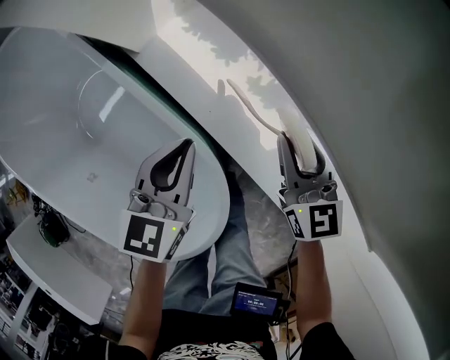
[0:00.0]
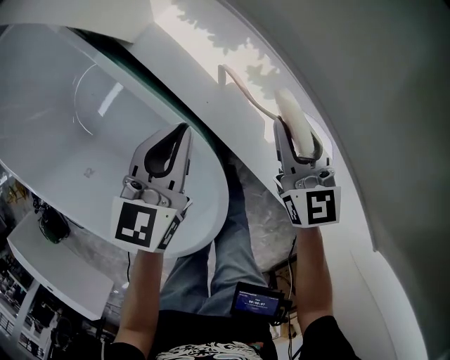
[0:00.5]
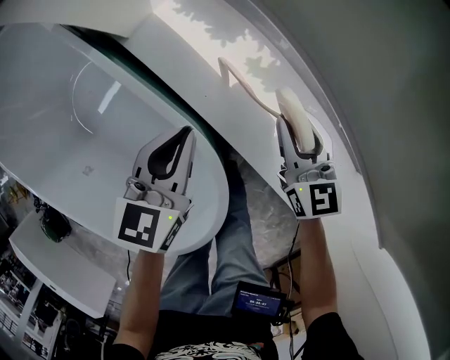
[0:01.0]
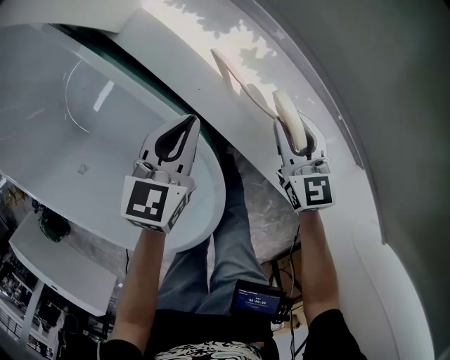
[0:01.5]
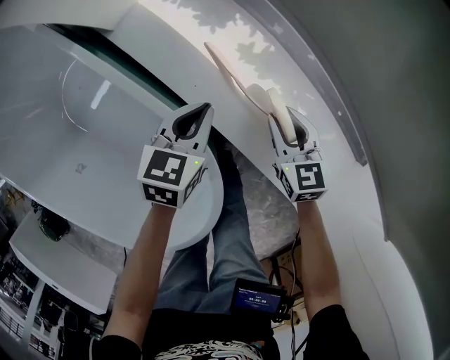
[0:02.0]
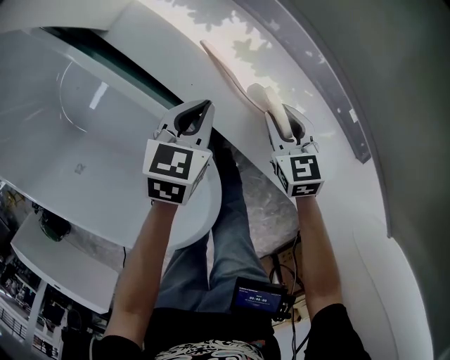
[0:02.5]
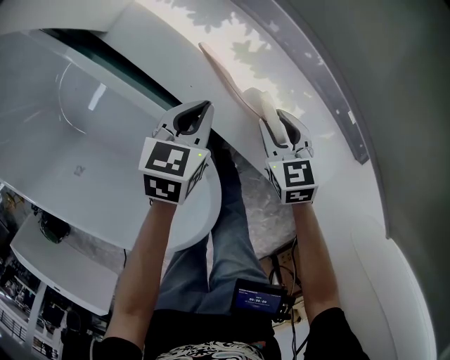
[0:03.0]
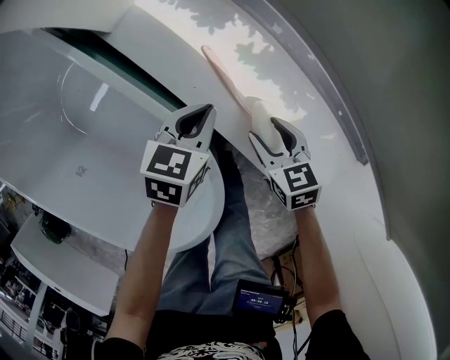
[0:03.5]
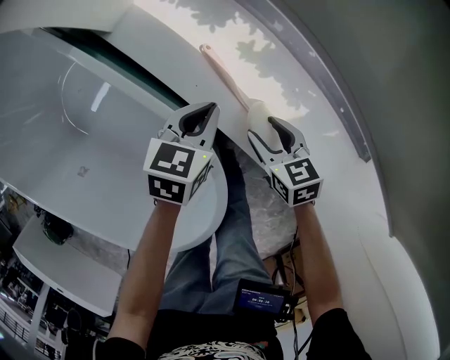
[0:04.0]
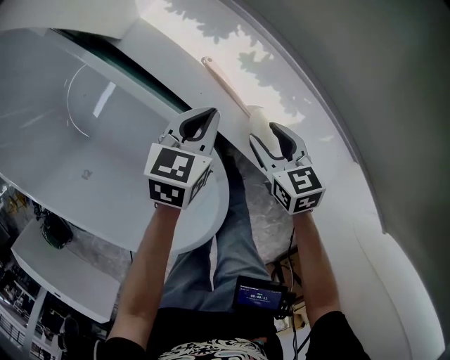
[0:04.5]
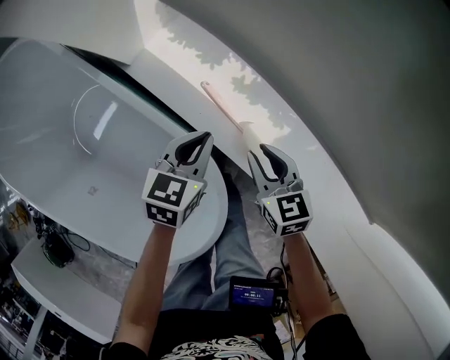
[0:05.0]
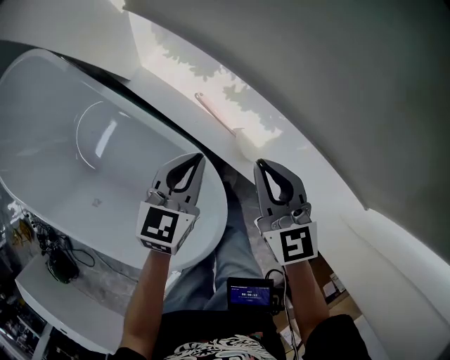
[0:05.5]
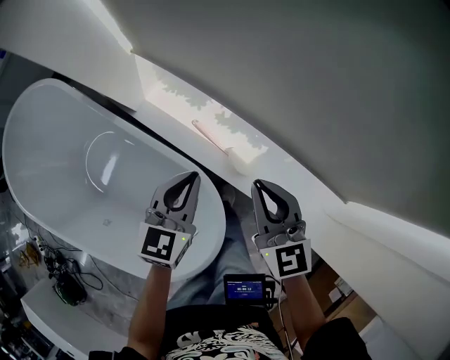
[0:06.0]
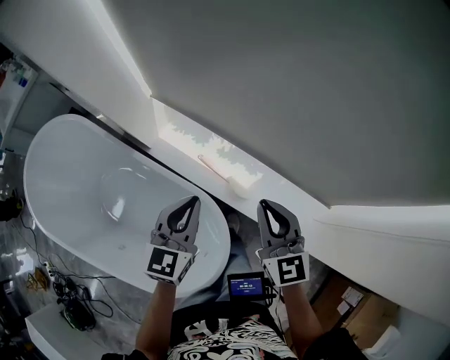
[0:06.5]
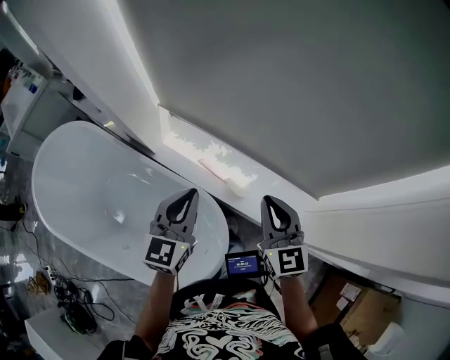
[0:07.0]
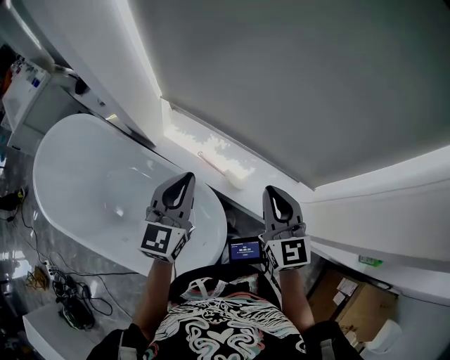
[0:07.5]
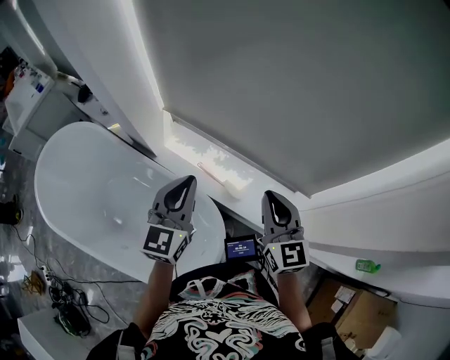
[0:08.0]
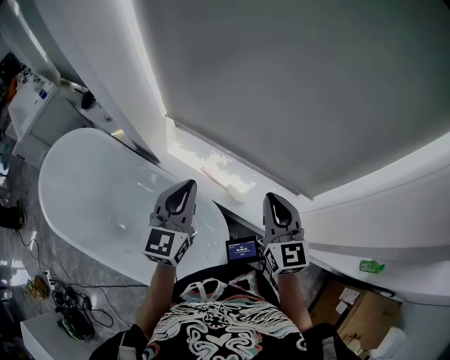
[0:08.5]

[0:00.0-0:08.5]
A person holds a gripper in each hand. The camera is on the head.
0:00.0 to 0:02.0: The two grippers go roughly 15 cm downward.
0:02.0 to 0:04.0: The right gripper changes place by some 5 cm.
0:04.0 to 0:06.5: Both grippers move upward, roughly 40 cm. The left gripper rotates about 30 degrees. The right gripper tilts its fingers approximately 30 degrees upward, and closes up.
0:06.5 to 0:08.5: The right gripper heads upward and backward, covering roughly 15 cm; the left gripper is displaced upward by roughly 15 cm.

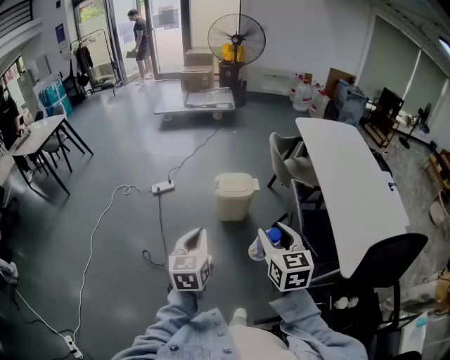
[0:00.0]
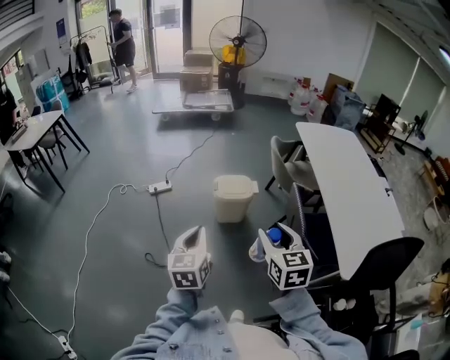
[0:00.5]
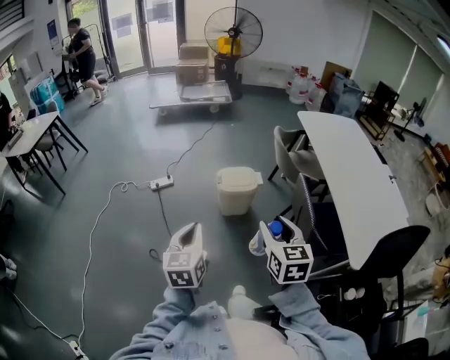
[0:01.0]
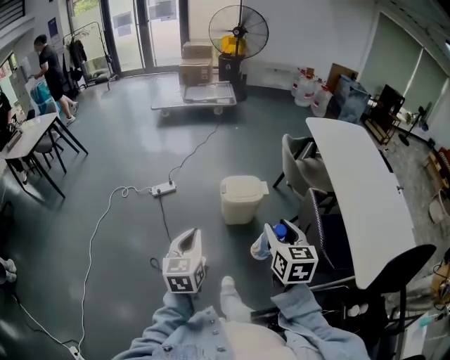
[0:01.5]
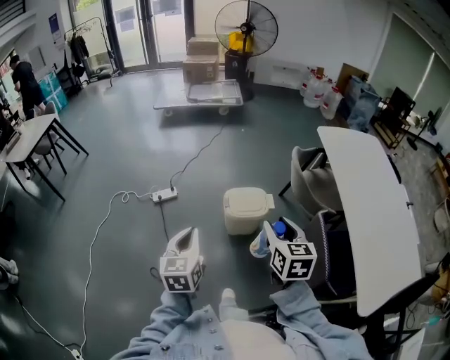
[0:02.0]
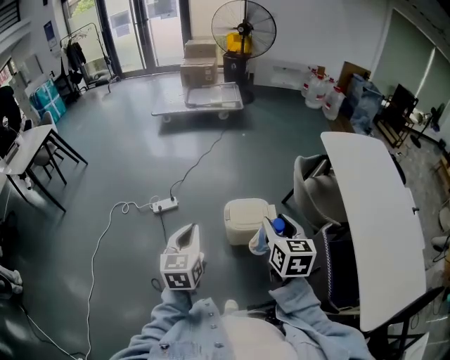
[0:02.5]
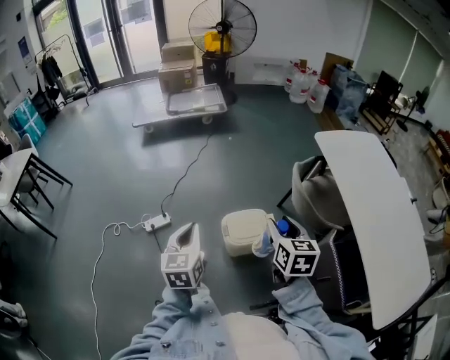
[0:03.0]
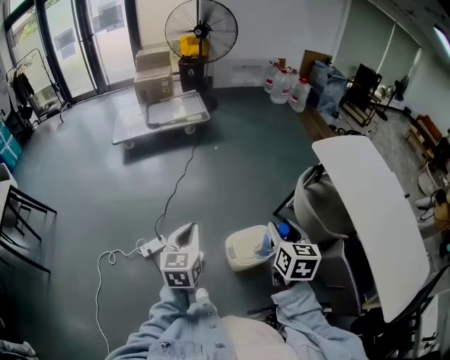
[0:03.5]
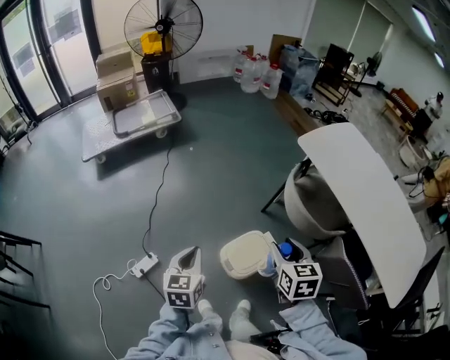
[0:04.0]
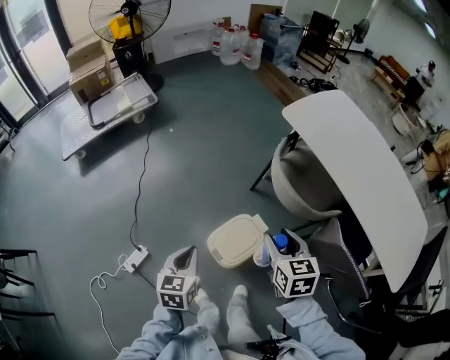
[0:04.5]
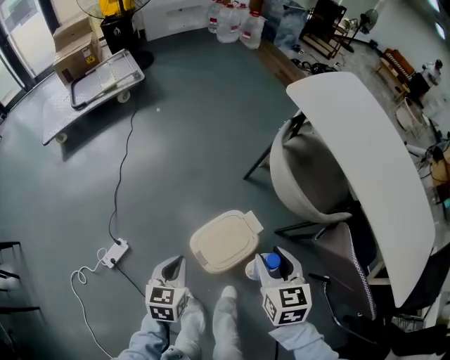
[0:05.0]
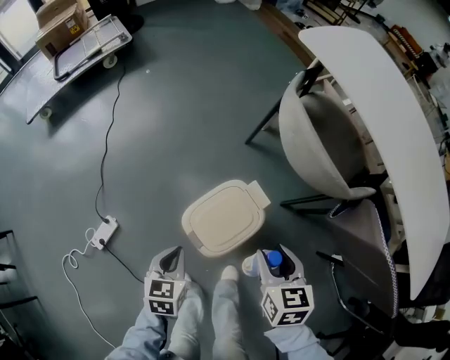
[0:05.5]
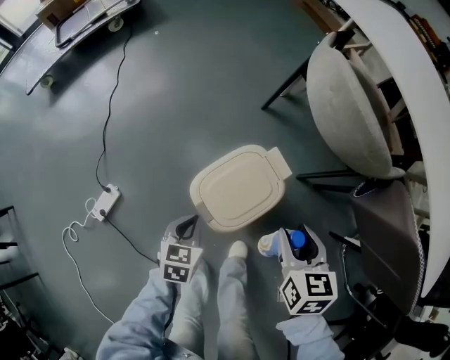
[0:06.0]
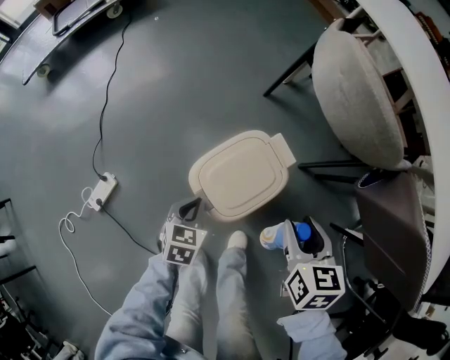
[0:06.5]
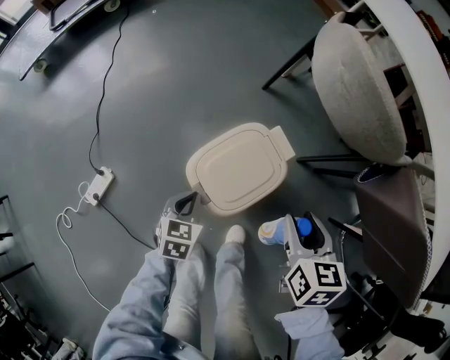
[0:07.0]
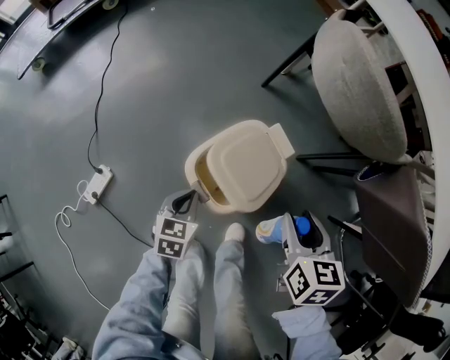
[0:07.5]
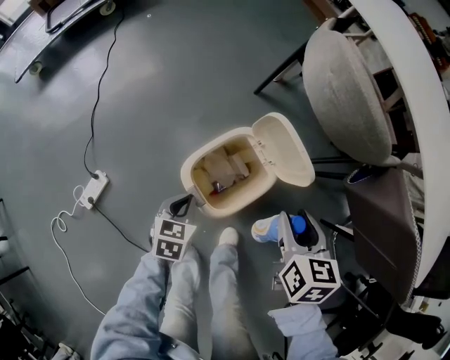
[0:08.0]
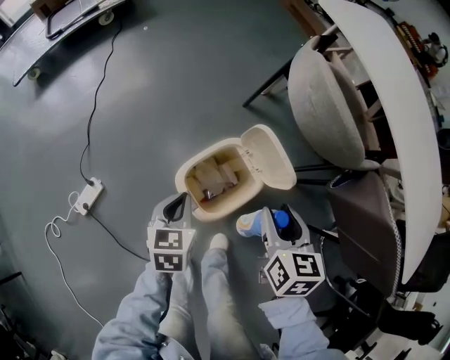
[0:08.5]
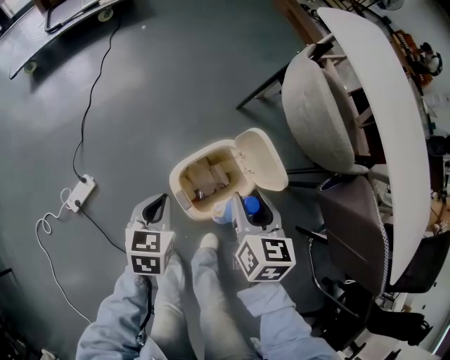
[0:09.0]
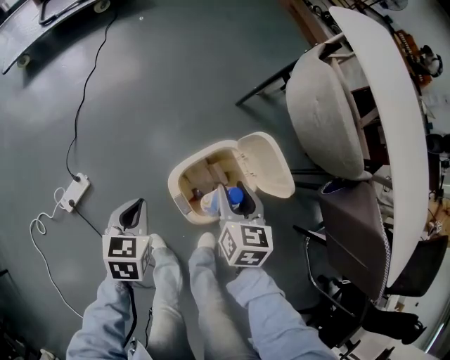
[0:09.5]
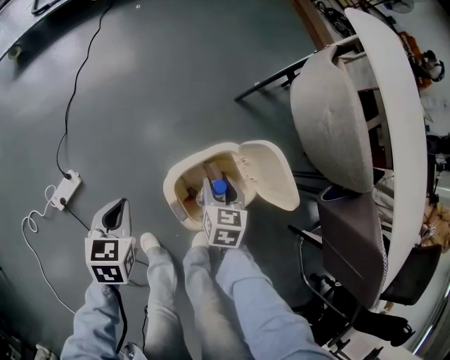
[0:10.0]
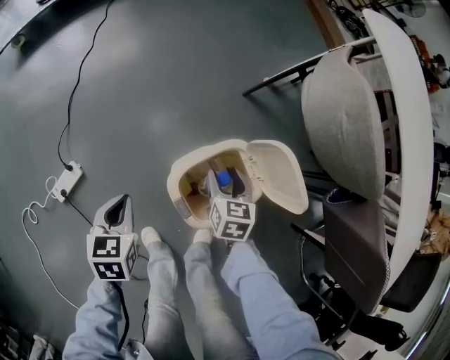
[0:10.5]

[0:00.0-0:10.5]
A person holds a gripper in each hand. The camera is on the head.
0:00.0 to 0:02.0: The right gripper heads forward, covering about 25 cm; the left gripper shifts about 25 cm forward and to the left.
0:02.0 to 0:04.0: The left gripper moves approximately 50 cm, and rotates some 30 degrees, while the right gripper shifts by approximately 35 cm, and rotates some 30 degrees.
0:04.0 to 0:06.5: Both grippers travel together downward, roughly 40 cm. The left gripper rotates approximately 30 degrees.
0:06.5 to 0:08.5: The left gripper shifts about 10 cm upward. Meanwhile the right gripper goes some 5 cm upward.
0:08.5 to 0:10.5: The right gripper heads downward, to the left and forward, covering about 25 cm. Meanwhile the left gripper heads to the left, covering some 15 cm.

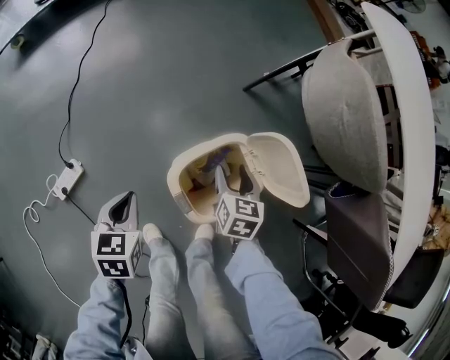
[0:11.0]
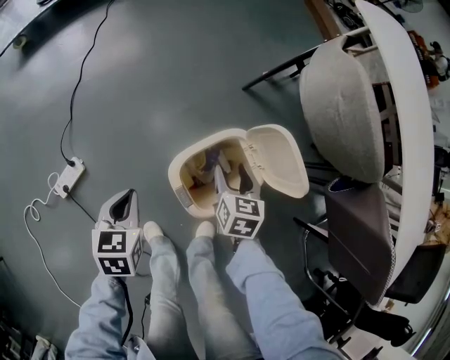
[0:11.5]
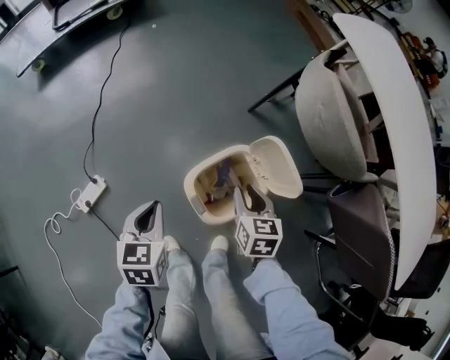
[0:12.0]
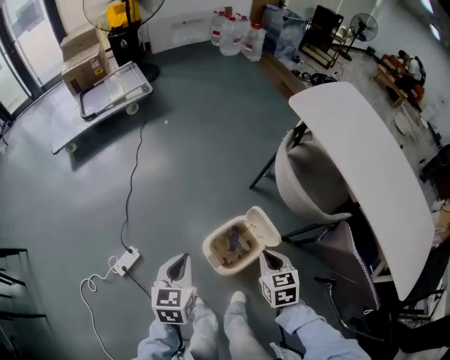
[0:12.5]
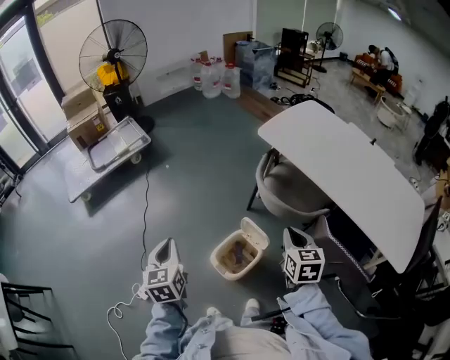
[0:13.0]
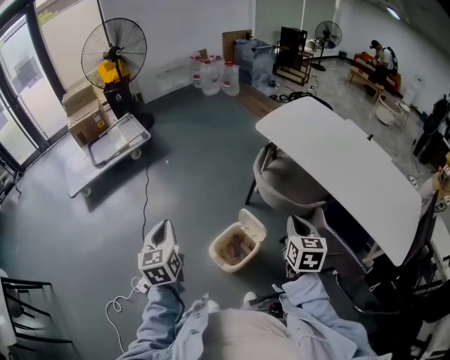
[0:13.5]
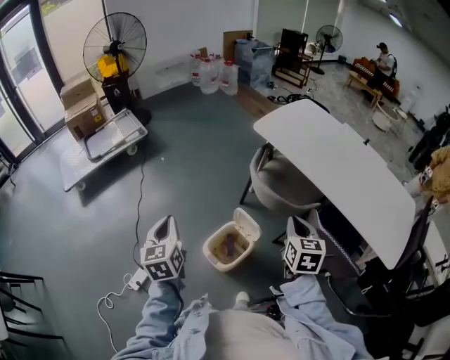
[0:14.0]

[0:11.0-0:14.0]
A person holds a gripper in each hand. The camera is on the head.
0:11.0 to 0:12.5: The grippers both shift upward by some 30 cm. The right gripper closes its fingers.
0:12.5 to 0:14.0: The left gripper travels upward by some 20 cm, while the right gripper shifts roughly 30 cm upward and to the right, and turns by some 30 degrees.

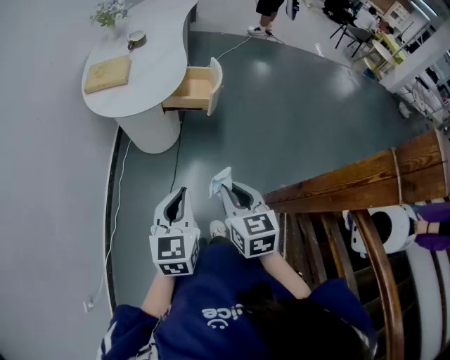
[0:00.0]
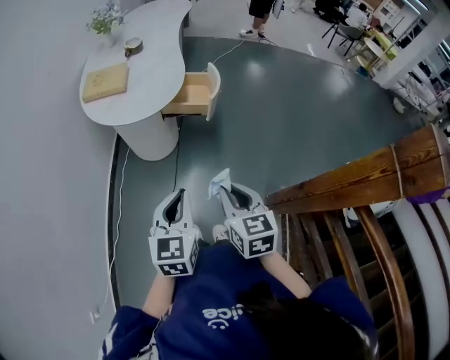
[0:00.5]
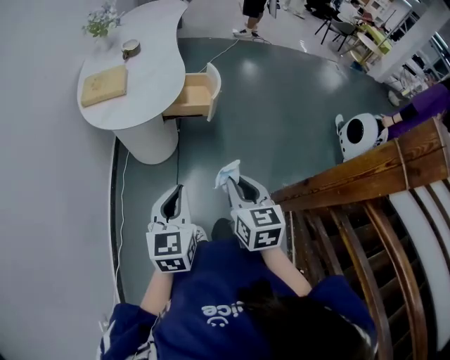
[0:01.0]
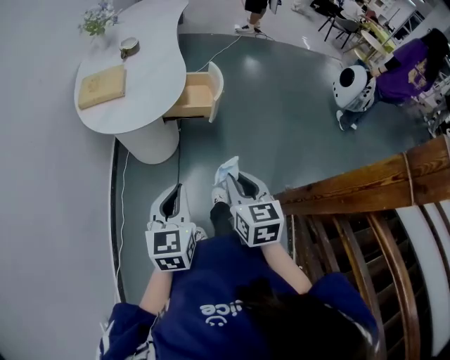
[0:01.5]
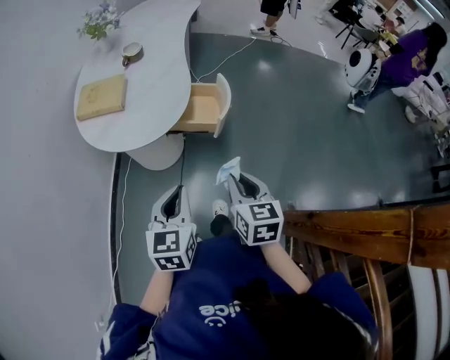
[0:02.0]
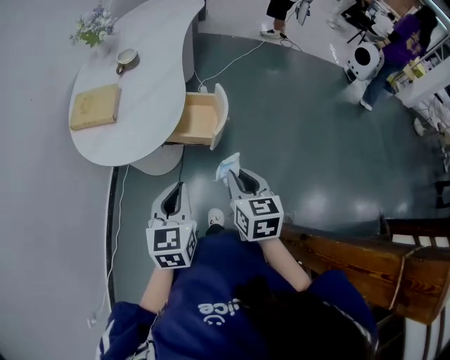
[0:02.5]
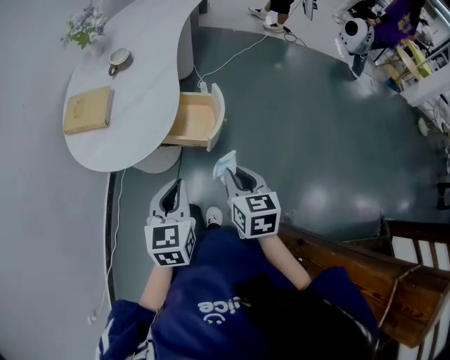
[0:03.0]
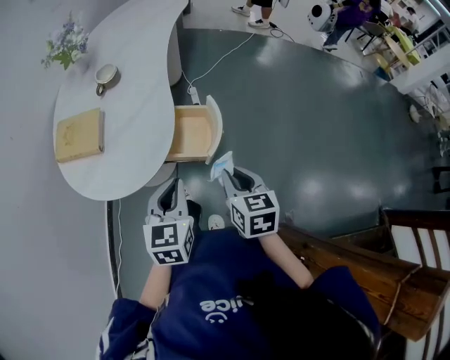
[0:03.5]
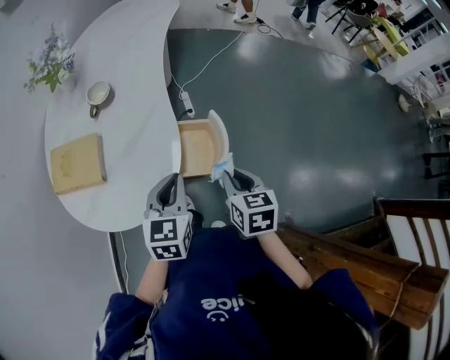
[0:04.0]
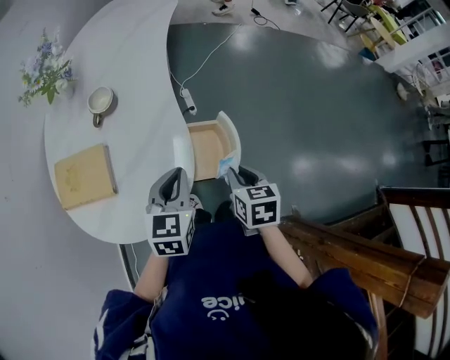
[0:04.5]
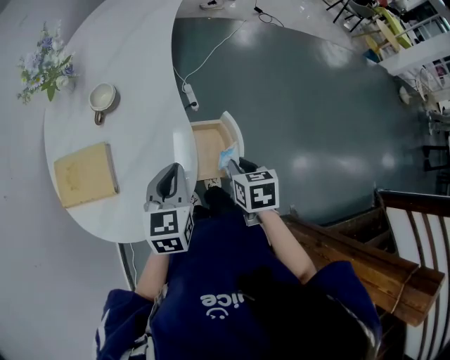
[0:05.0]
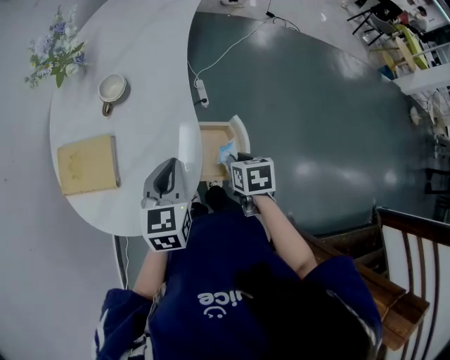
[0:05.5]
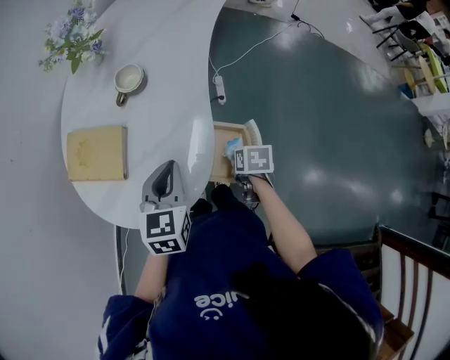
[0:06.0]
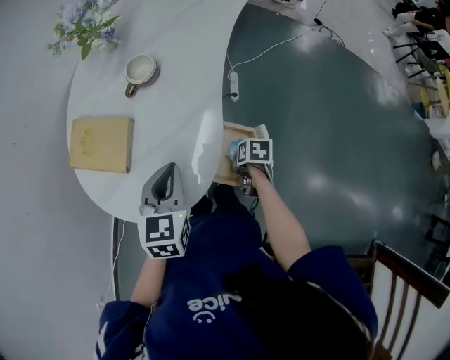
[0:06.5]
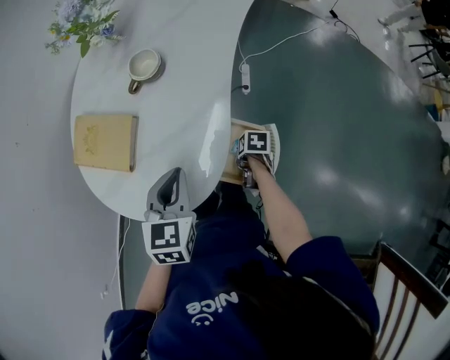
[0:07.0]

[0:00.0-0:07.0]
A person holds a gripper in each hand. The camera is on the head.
0:00.0 to 0:02.0: The grippers both shift forward by approximately 20 cm.
0:02.0 to 0:03.5: The two grippers go approximately 20 cm forward.
0:03.5 to 0:05.0: The right gripper moves forward, downward and to the left, roughly 15 cm. The left gripper travels forward and to the left by some 20 cm.
0:05.0 to 0:07.0: The left gripper shifts by roughly 5 cm, and turns by approximately 20 degrees; the right gripper heads downward, covering about 20 cm, and rotates roughly 40 degrees.
